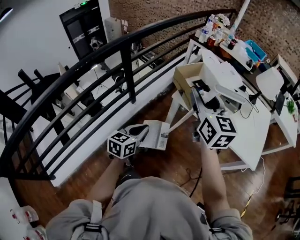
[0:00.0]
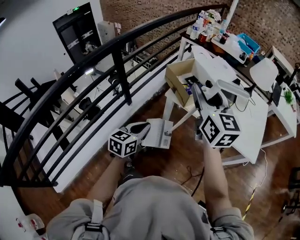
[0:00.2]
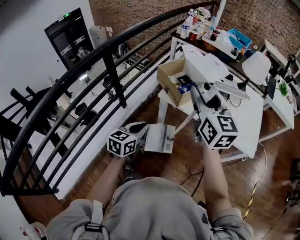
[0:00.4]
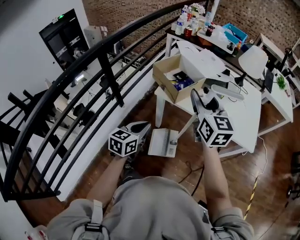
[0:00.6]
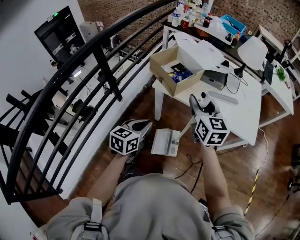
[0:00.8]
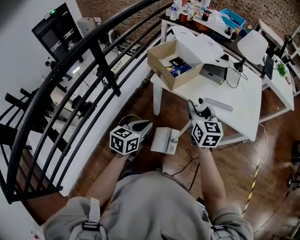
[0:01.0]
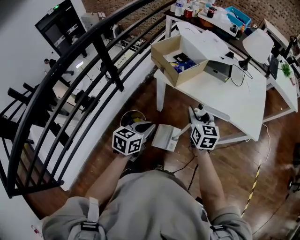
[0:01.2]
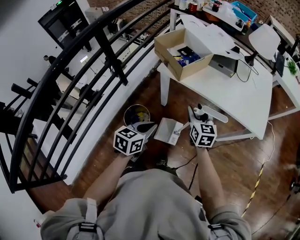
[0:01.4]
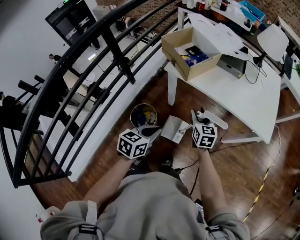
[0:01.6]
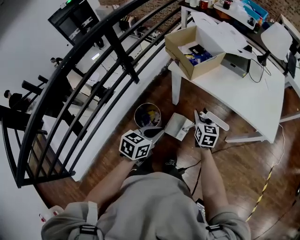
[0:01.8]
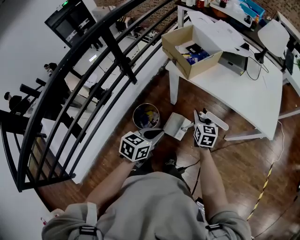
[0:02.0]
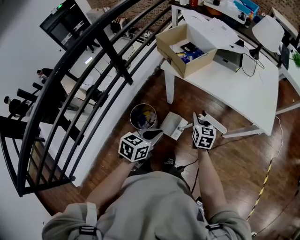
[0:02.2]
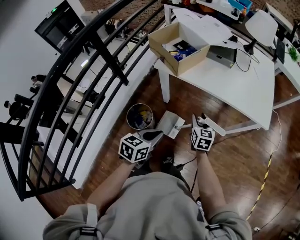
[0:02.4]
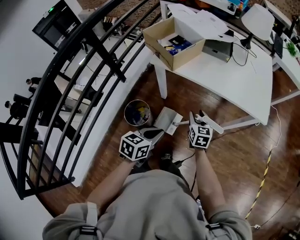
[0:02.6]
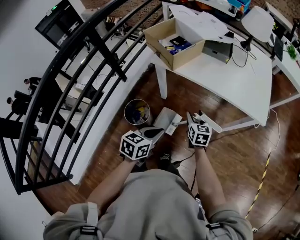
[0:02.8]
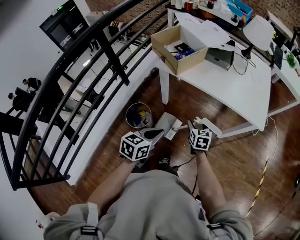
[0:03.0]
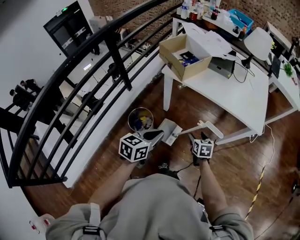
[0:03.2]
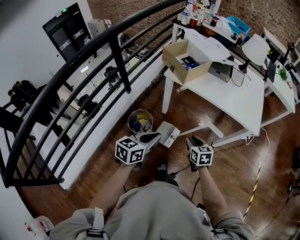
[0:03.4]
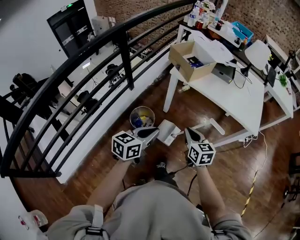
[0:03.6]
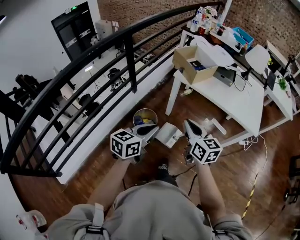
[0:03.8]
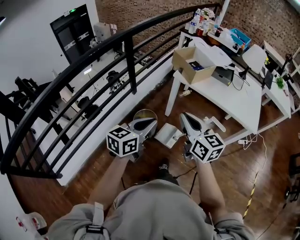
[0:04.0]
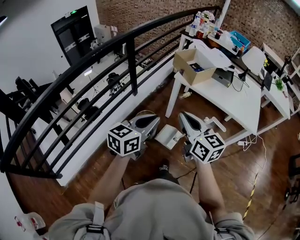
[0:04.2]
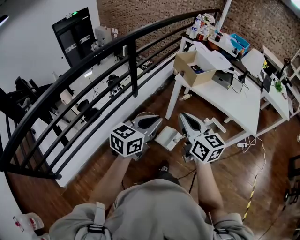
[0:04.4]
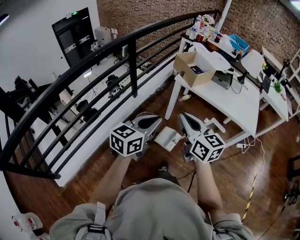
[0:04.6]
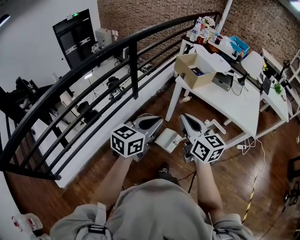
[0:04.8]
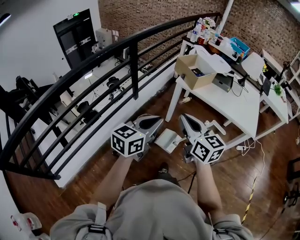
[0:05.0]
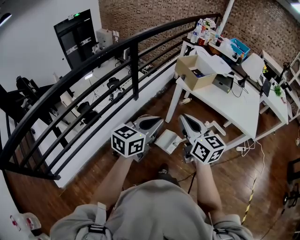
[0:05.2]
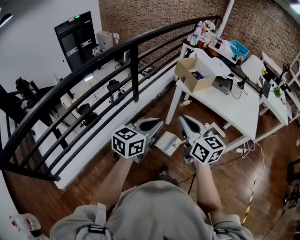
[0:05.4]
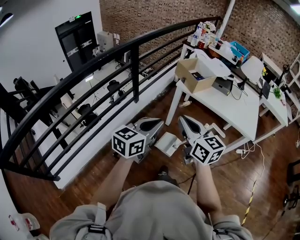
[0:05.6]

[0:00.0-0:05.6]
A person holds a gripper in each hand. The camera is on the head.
0:00.0 to 0:01.4: The right gripper goes approximately 30 cm downward and to the right, and changes its angle by approximately 20 degrees; the left gripper heads to the right and downward, covering about 15 cm.
0:01.4 to 0:02.8: The left gripper is displaced to the right by roughly 10 cm; the right gripper shifts approximately 10 cm downward and to the right.
0:02.8 to 0:04.2: The left gripper heads upward, to the left and backward, covering some 30 cm, and swivels approximately 30 degrees. Meanwhile the right gripper moves upward, backward and to the left, about 40 cm, swivels some 40 degrees, and closes up.
0:04.2 to 0:05.6: There are only small adjustments of the grippers.

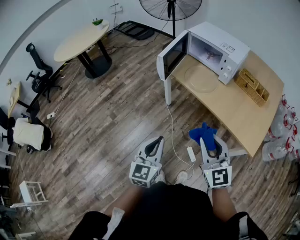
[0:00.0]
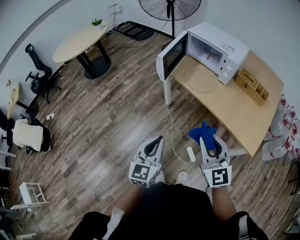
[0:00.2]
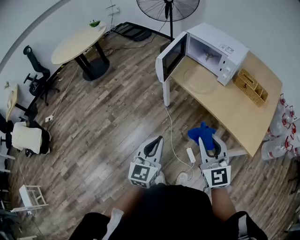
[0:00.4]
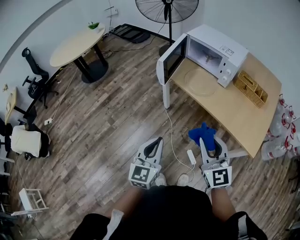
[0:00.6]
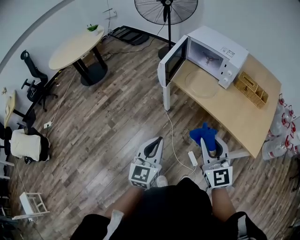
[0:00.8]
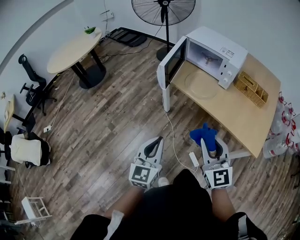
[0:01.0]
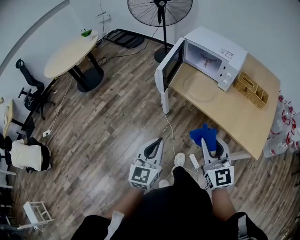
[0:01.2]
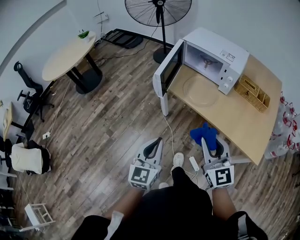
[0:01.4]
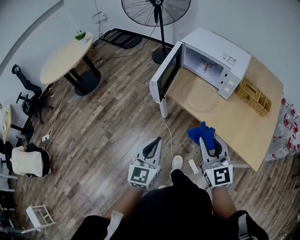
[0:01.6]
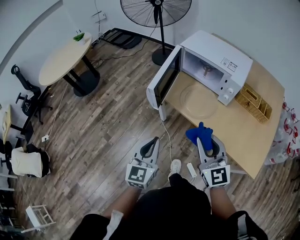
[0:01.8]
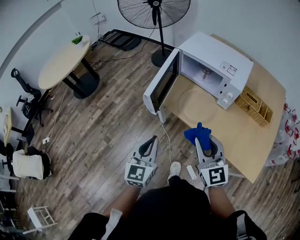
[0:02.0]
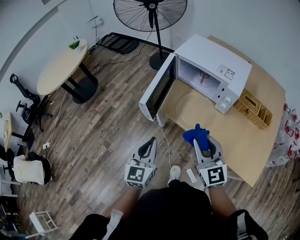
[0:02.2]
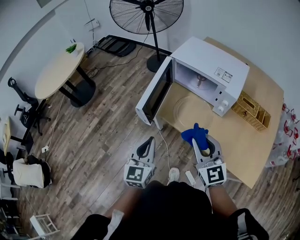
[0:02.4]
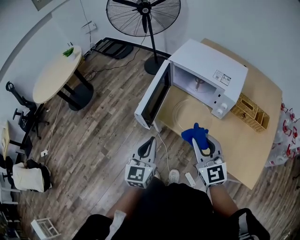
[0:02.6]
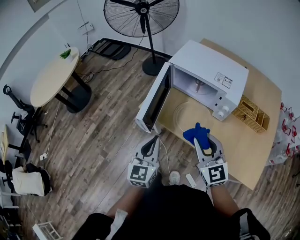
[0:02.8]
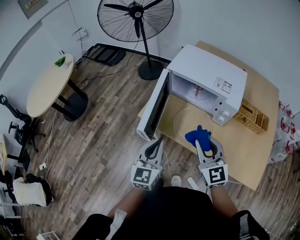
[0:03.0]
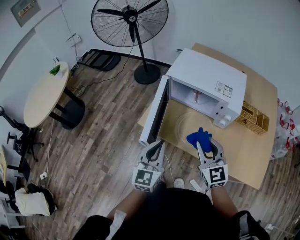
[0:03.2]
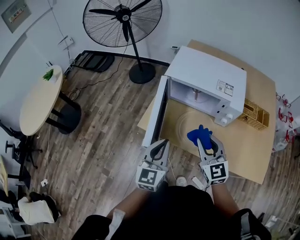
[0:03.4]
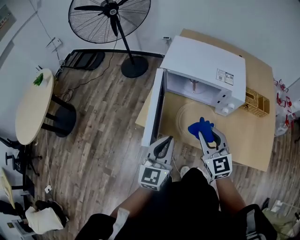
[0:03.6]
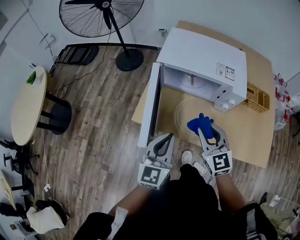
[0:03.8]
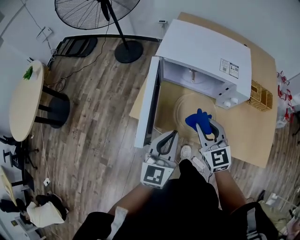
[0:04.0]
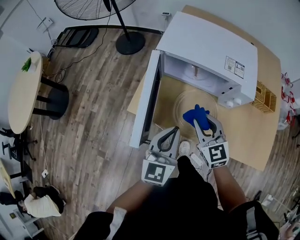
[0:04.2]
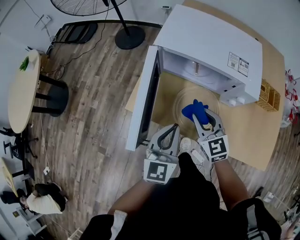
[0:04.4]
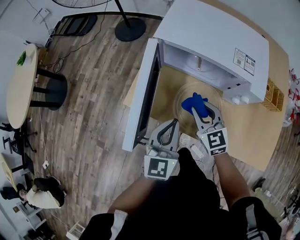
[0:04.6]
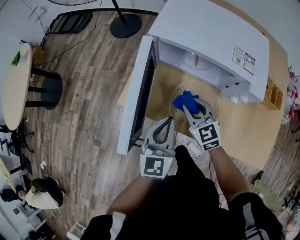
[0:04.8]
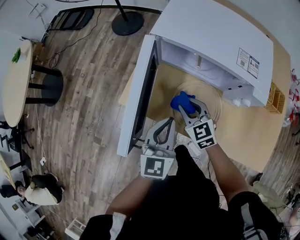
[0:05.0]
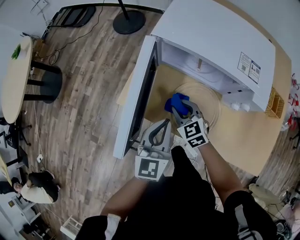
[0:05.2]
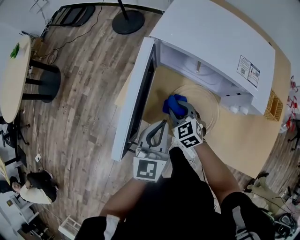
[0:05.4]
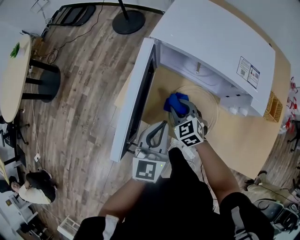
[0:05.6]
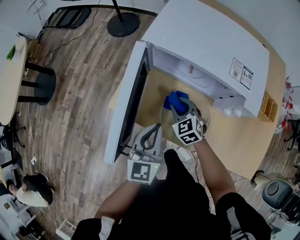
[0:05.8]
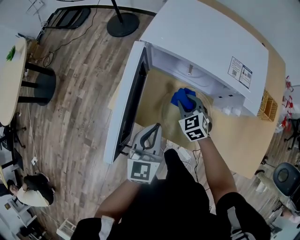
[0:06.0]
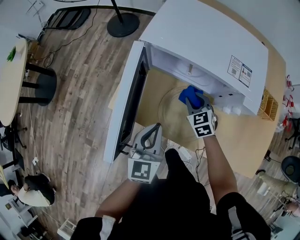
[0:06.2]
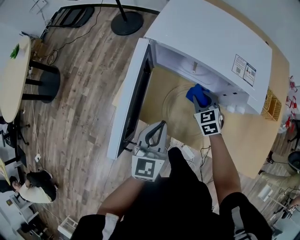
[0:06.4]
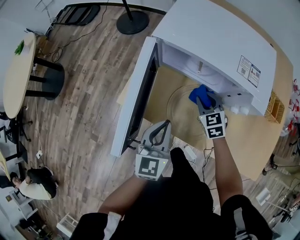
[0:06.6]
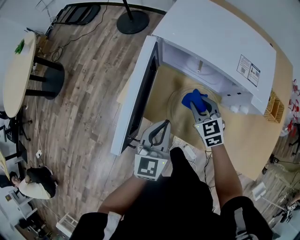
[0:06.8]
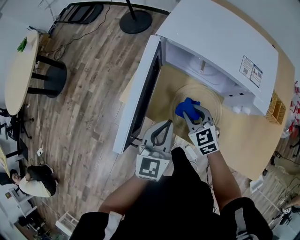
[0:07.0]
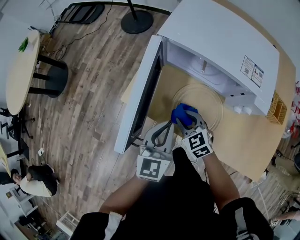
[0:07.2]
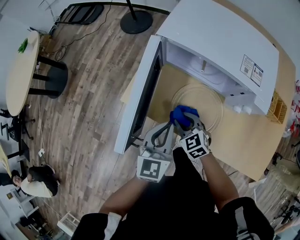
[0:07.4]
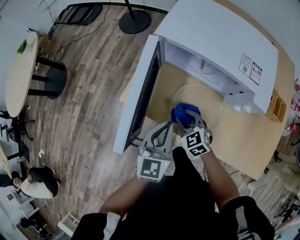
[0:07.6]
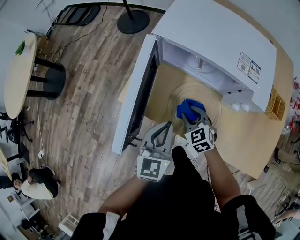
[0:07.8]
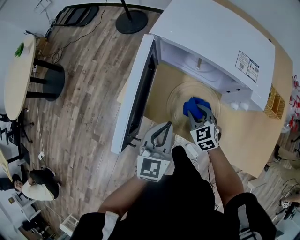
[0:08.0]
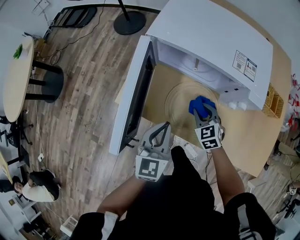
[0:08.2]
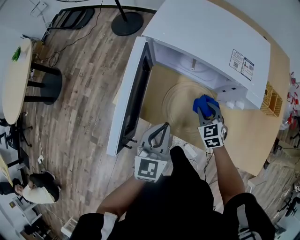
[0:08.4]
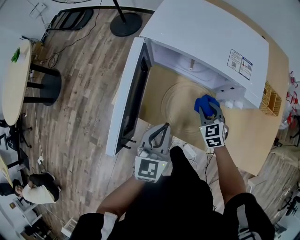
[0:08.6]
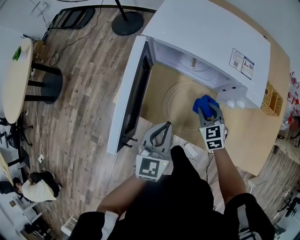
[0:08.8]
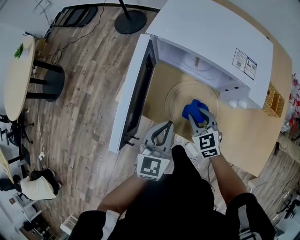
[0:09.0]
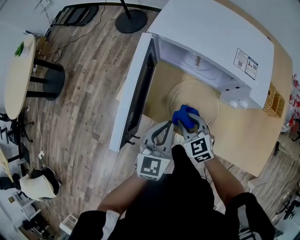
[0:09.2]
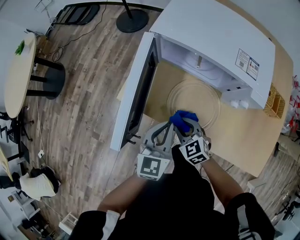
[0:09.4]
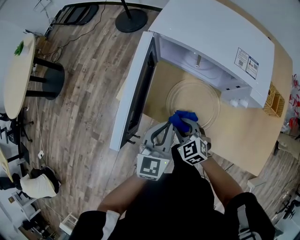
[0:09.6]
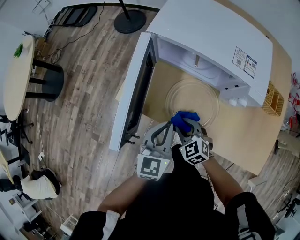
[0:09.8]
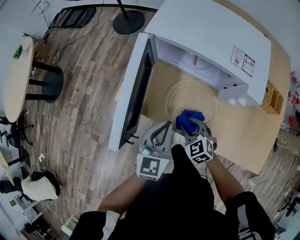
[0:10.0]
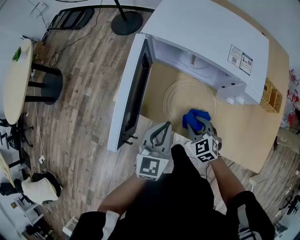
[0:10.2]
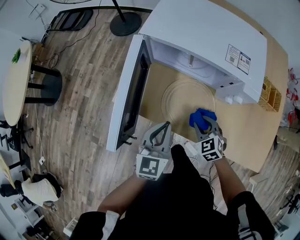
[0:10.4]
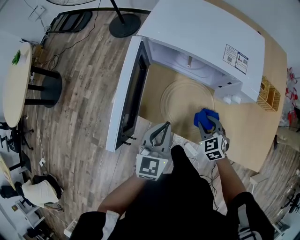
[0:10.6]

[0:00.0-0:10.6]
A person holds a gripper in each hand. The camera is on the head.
0:00.0 to 0:01.6: The grippers both shift forward by some 15 cm.
0:01.6 to 0:03.0: Both grippers travel together forward, roughly 20 cm.
0:03.0 to 0:04.6: The right gripper travels downward and forward by approximately 20 cm, while the left gripper goes some 15 cm forward and downward.
0:04.6 to 0:06.0: The right gripper goes some 10 cm downward and forward, and turns by some 20 degrees.
0:06.0 to 0:07.6: The right gripper heads backward and to the left, covering about 10 cm.
0:07.6 to 0:09.0: The right gripper heads to the right, covering some 5 cm.
0:09.0 to 0:10.6: The right gripper moves to the right, roughly 5 cm.

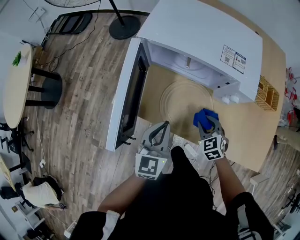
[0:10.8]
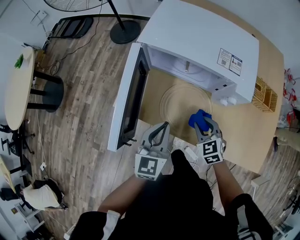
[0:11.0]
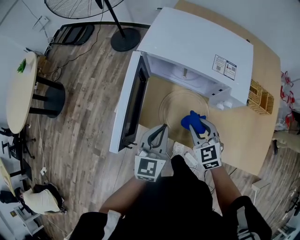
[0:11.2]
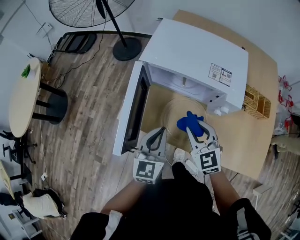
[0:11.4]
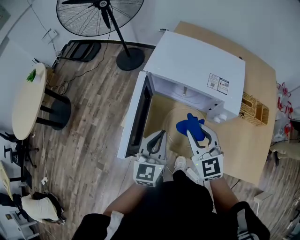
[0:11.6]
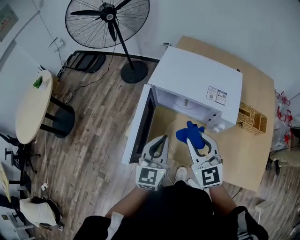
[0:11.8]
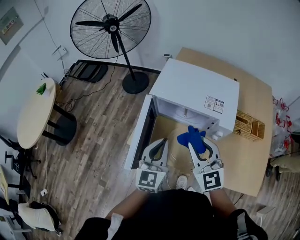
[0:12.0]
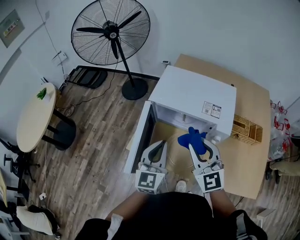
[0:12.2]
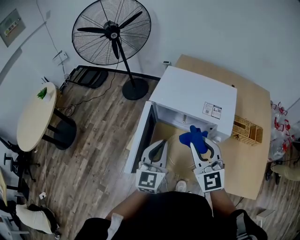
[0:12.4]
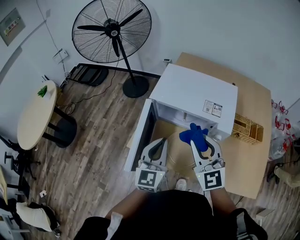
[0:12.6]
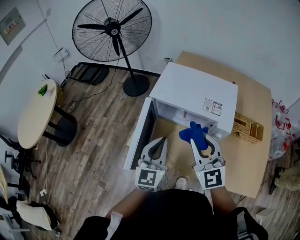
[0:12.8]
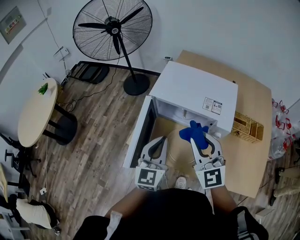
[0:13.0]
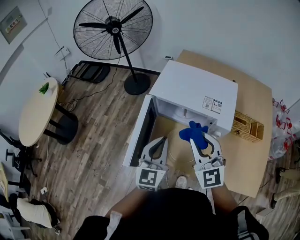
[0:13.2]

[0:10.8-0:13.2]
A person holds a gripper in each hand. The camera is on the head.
0:10.8 to 0:12.0: The left gripper travels upward by about 15 cm. Meanwhile the right gripper shifts about 30 cm upward, and points its fingers about 40 degrees further upward.
0:12.0 to 0:13.2: The grippers make only small movements.

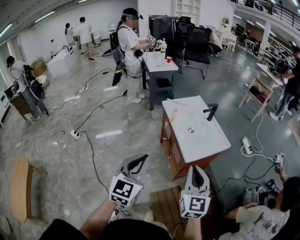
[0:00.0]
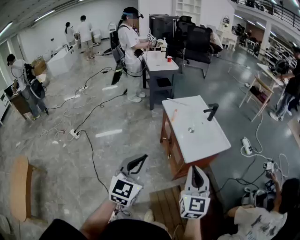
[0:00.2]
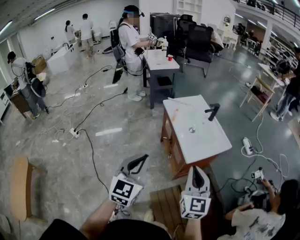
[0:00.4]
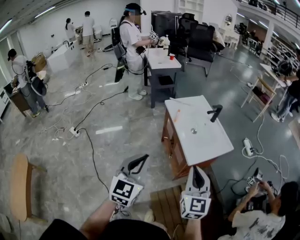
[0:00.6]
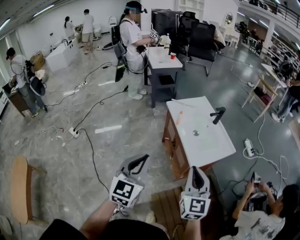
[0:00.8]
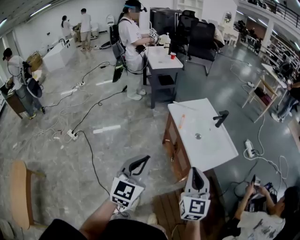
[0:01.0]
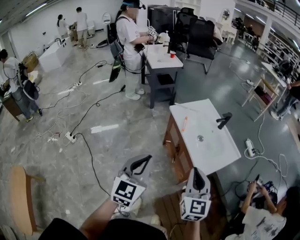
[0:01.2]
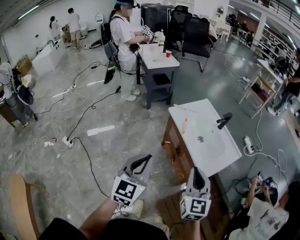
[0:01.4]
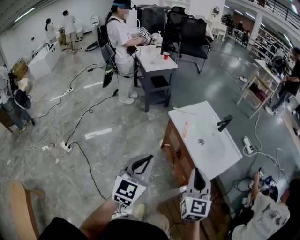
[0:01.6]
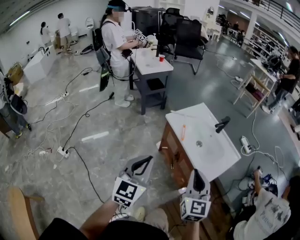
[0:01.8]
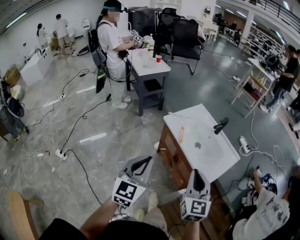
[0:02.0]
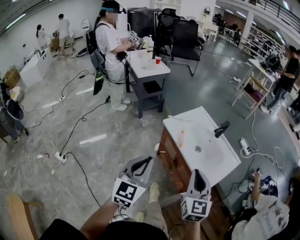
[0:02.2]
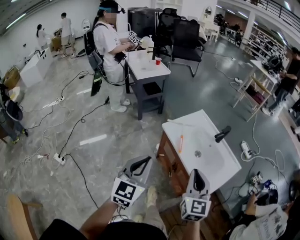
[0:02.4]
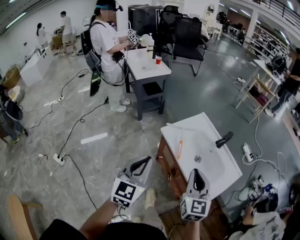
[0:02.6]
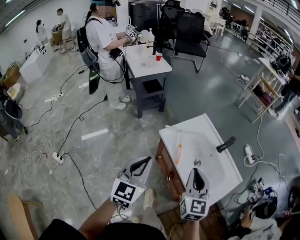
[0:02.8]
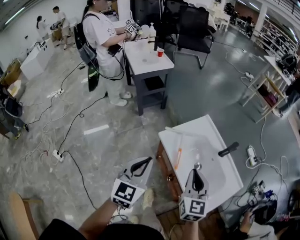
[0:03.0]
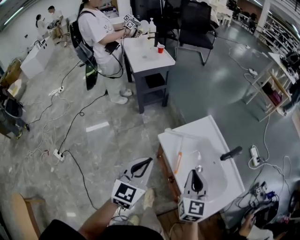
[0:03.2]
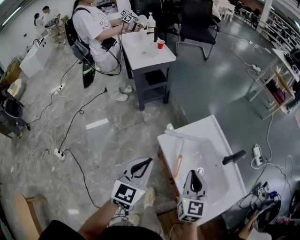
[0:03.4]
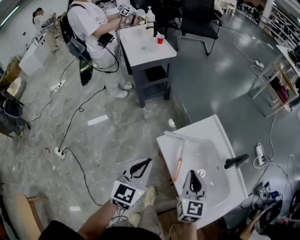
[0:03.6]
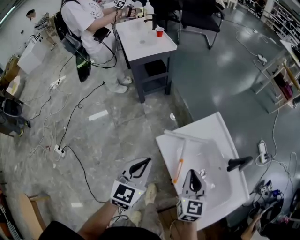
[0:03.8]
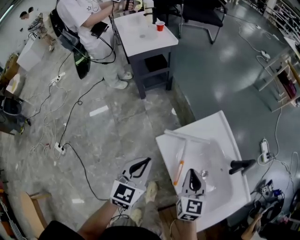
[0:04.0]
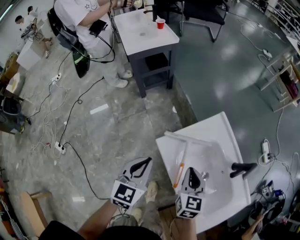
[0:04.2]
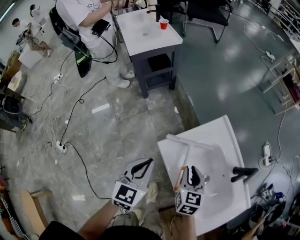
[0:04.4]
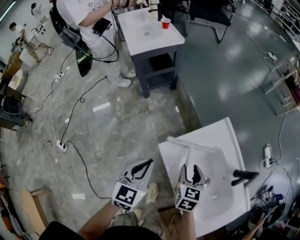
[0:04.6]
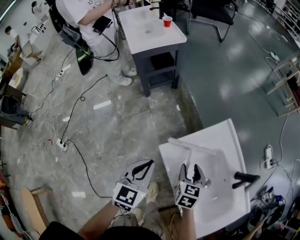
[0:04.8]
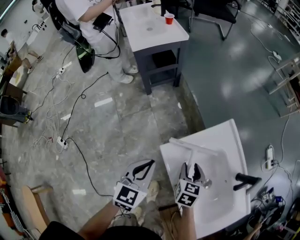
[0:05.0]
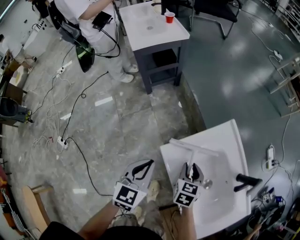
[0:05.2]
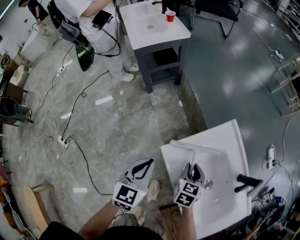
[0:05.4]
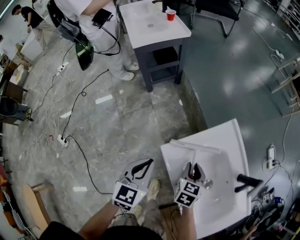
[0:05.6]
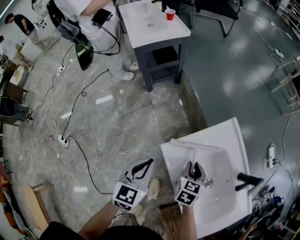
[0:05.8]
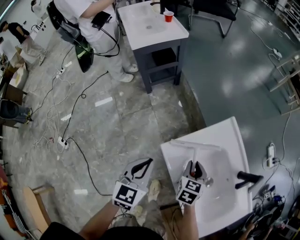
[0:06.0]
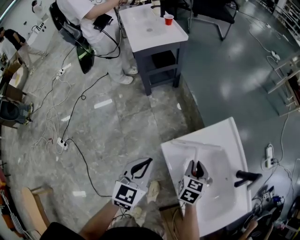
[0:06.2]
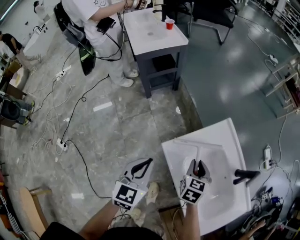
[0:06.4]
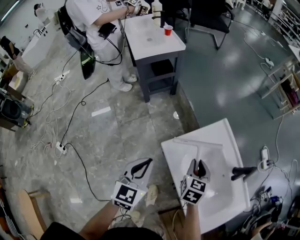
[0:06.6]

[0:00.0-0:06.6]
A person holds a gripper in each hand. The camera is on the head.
0:00.0 to 0:01.6: The left gripper is displaced forward and to the left by approximately 25 cm. The right gripper moves to the left and forward, roughly 25 cm.
0:01.6 to 0:03.2: Both grippers move forward, roughly 35 cm.
0:03.2 to 0:05.0: The grippers both shift downward and forward by approximately 25 cm. The right gripper turns by roughly 30 degrees, and opens its fingers.
0:05.0 to 0:06.6: The right gripper shifts roughly 5 cm upward, and closes up. The left gripper ends up approximately 5 cm from where it was.
